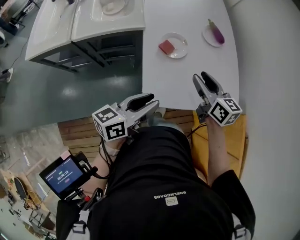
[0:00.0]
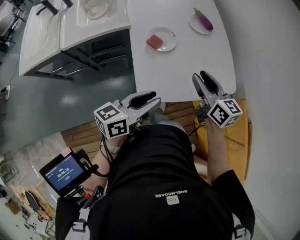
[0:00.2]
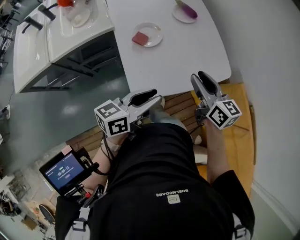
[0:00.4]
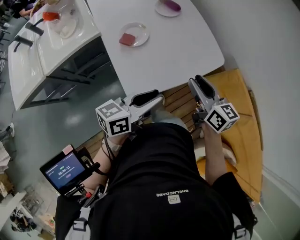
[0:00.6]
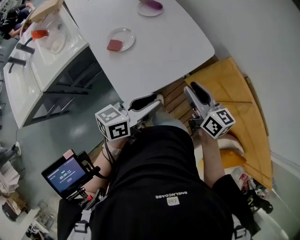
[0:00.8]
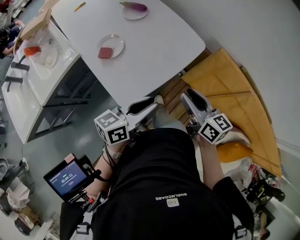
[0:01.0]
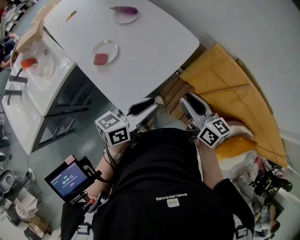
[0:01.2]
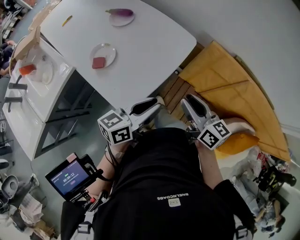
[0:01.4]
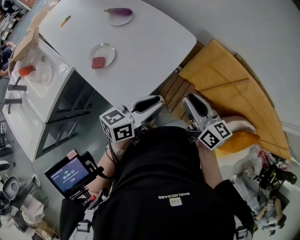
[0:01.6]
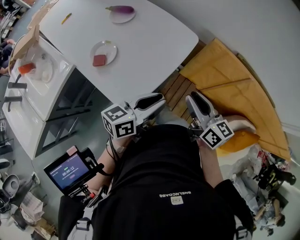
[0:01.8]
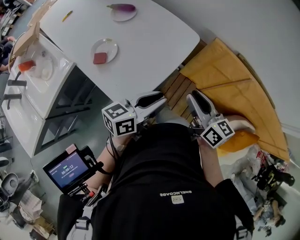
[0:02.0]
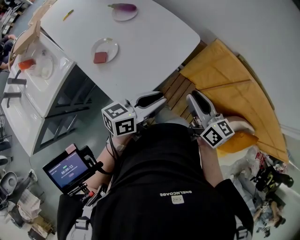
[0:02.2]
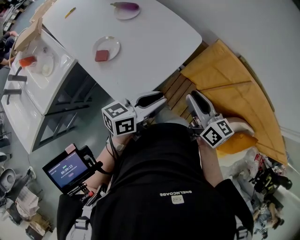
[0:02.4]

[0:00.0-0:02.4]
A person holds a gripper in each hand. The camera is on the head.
0:00.0 to 0:01.2: The left gripper ends up some 20 cm from where it was, and turns by some 40 degrees. The right gripper ends up approximately 30 cm from where it was, and changes its angle by about 40 degrees.
0:01.2 to 0:02.4: The grippers make only small movements.

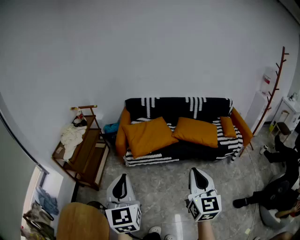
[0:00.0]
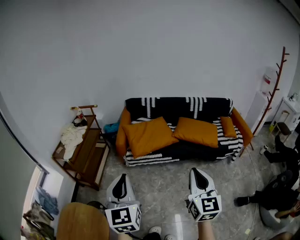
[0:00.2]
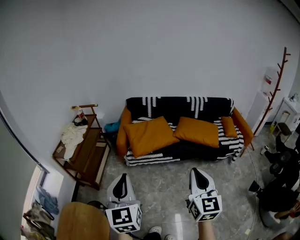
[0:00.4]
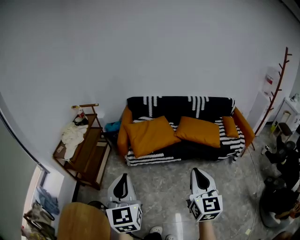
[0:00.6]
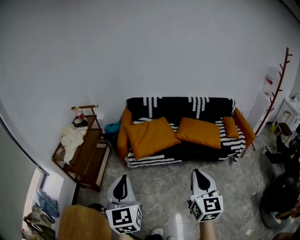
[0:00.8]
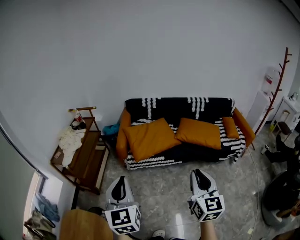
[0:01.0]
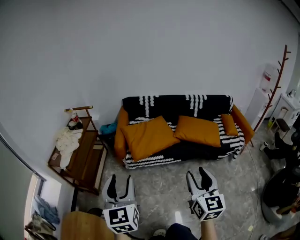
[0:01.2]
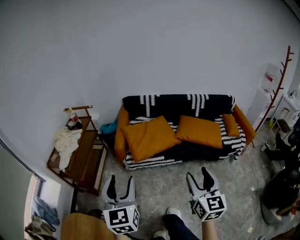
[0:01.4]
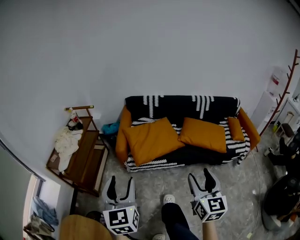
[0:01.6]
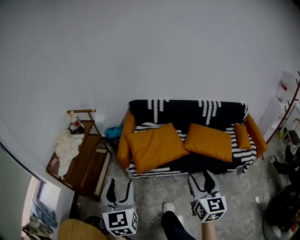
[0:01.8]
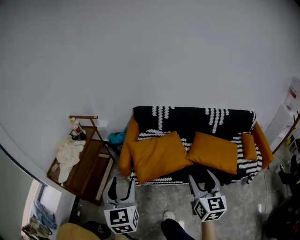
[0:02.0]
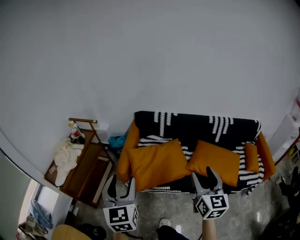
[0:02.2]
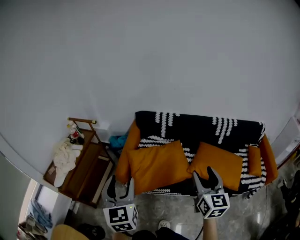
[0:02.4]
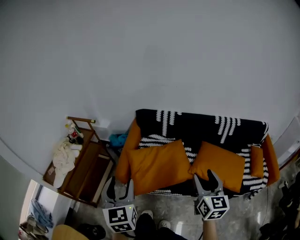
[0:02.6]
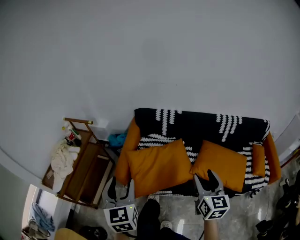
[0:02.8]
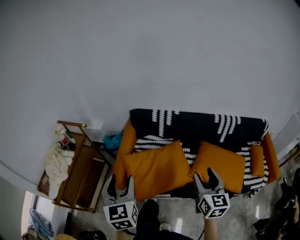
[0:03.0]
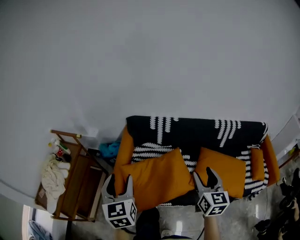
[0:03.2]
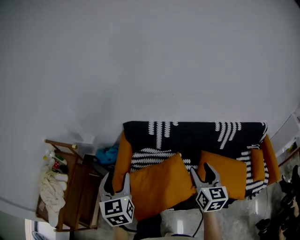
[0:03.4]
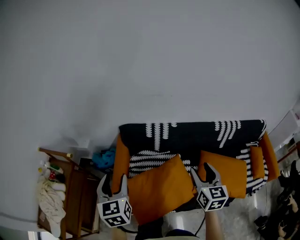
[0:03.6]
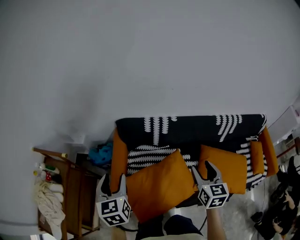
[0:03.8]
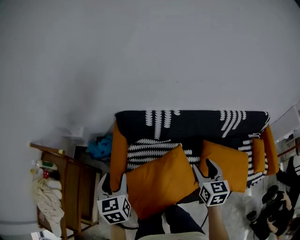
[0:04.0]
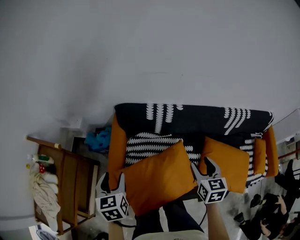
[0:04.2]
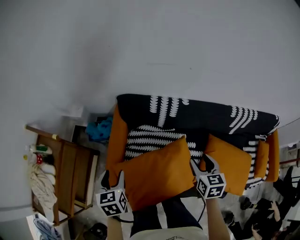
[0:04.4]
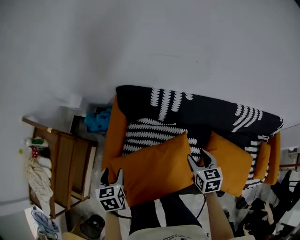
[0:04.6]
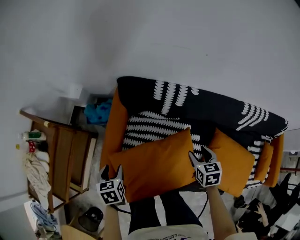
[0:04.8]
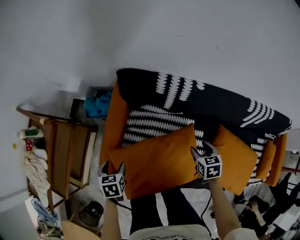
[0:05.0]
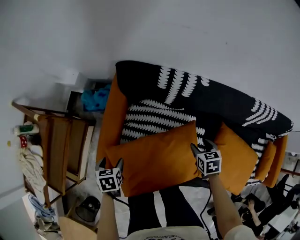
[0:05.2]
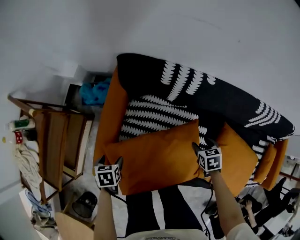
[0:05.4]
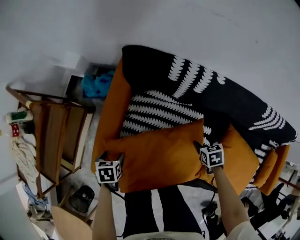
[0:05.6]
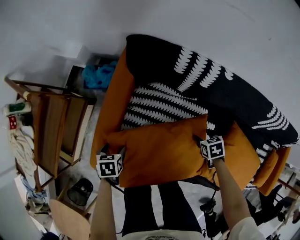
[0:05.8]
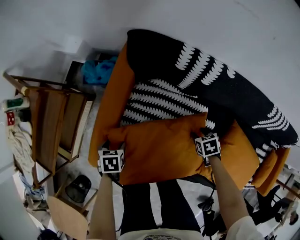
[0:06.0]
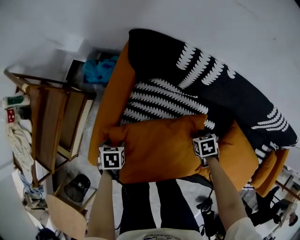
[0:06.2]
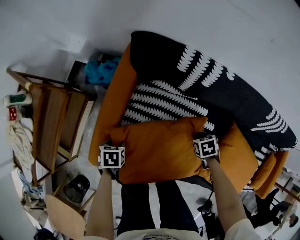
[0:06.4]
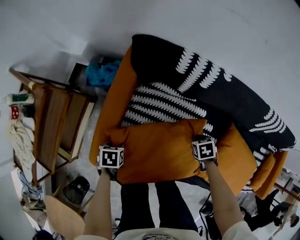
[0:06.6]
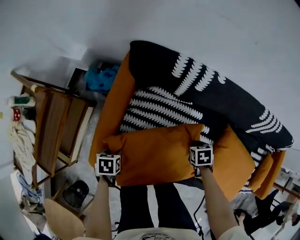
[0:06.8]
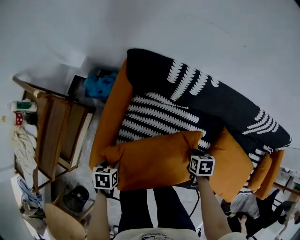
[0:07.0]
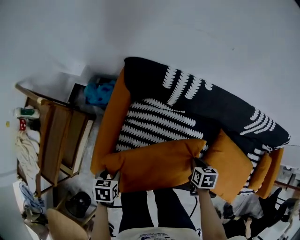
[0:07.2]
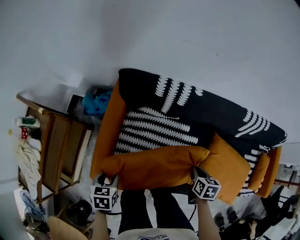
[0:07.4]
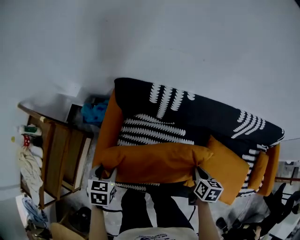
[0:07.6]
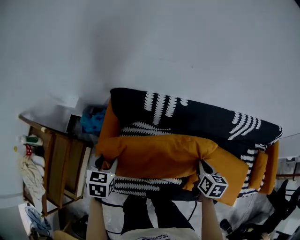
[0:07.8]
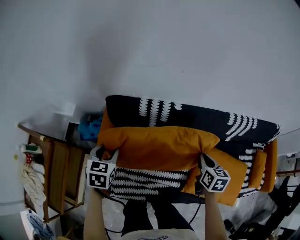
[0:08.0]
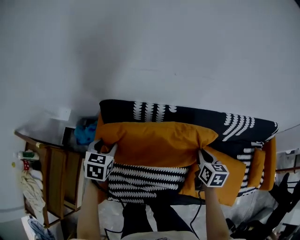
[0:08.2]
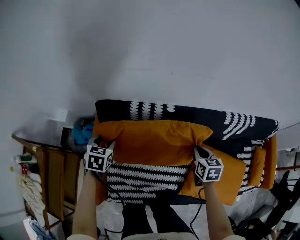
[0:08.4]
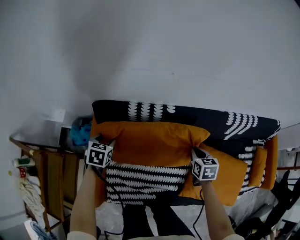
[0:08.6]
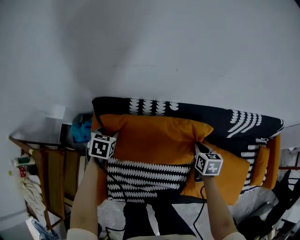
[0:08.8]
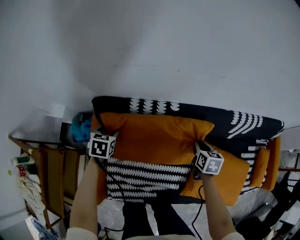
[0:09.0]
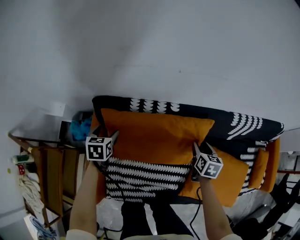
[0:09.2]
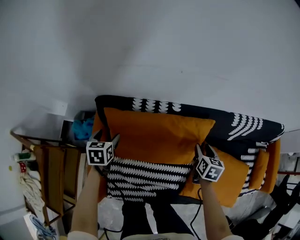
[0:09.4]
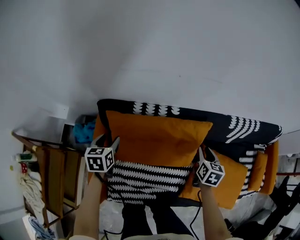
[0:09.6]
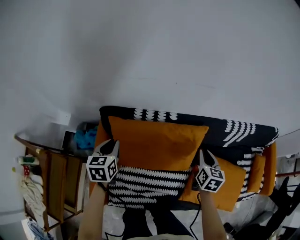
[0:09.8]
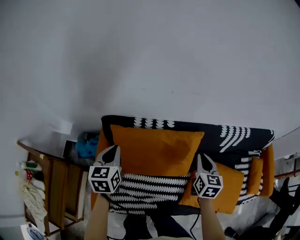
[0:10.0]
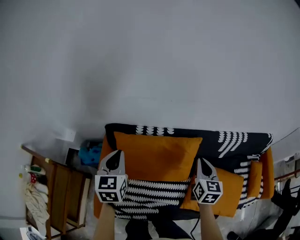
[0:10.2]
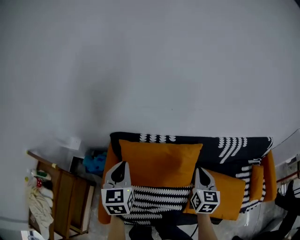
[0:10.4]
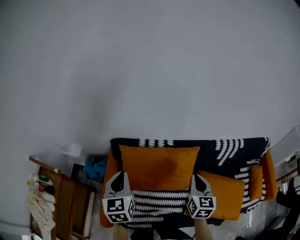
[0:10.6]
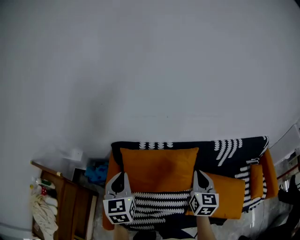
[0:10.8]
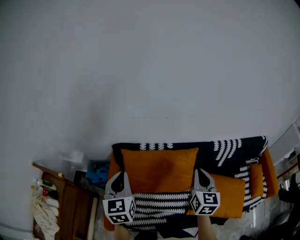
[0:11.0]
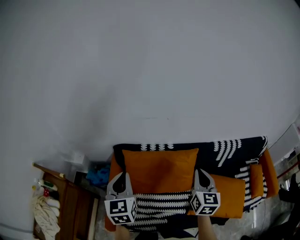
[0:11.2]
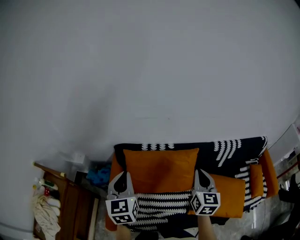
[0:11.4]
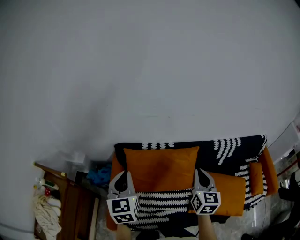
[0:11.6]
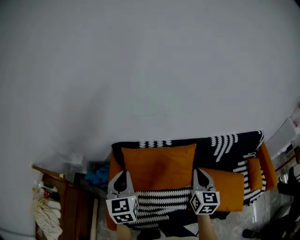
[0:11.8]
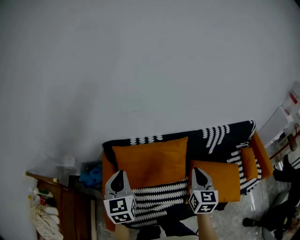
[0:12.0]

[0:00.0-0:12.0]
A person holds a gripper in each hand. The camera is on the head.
0:00.0 to 0:01.6: The left gripper moves forward, approximately 15 cm, and opens up, while the right gripper moves forward and downward, roughly 15 cm, and opens up.
0:01.6 to 0:03.0: The two grippers travel together, forward, some 40 cm.
0:03.0 to 0:04.4: Both grippers move forward and downward, about 35 cm. The right gripper rotates some 30 degrees. The left gripper changes its angle by some 30 degrees.
0:04.4 to 0:06.0: The two grippers go some 30 cm downward. The right gripper points its fingers approximately 40 degrees further downward, while the left gripper tilts its fingers roughly 30 degrees downward.
0:06.0 to 0:07.6: The two grippers go roughly 20 cm upward. The right gripper rotates some 50 degrees, and closes, while the left gripper swivels roughly 30 degrees, and closes up.
0:07.6 to 0:09.0: The two grippers go roughly 25 cm forward.
0:09.0 to 0:10.4: Both grippers travel together upward and backward, roughly 30 cm. The left gripper tilts its fingers some 40 degrees upward, and closes its fingers. Meanwhile the right gripper turns by about 30 degrees, and opens, then closes once more.
0:10.4 to 0:12.0: The left gripper is displaced backward by roughly 5 cm, while the right gripper goes approximately 10 cm backward and upward.

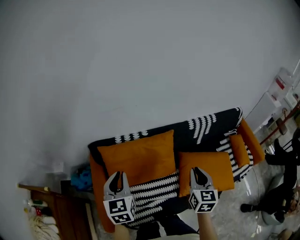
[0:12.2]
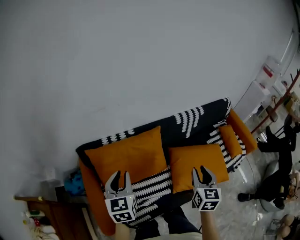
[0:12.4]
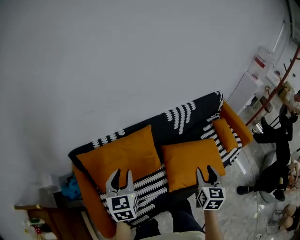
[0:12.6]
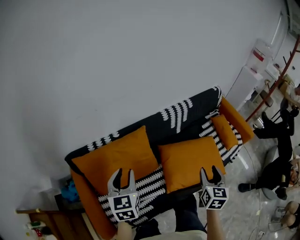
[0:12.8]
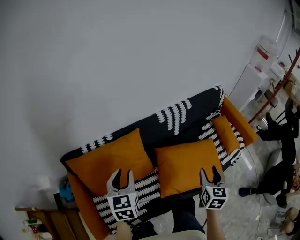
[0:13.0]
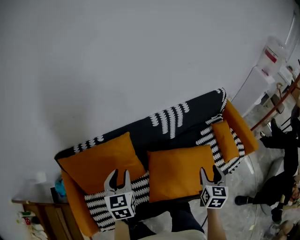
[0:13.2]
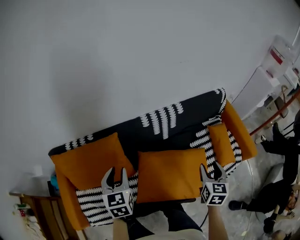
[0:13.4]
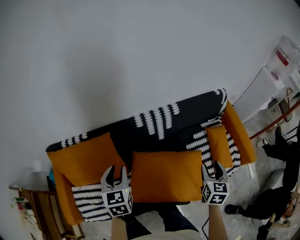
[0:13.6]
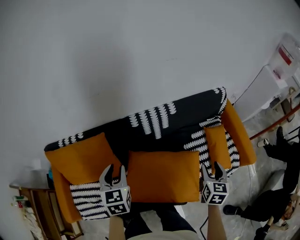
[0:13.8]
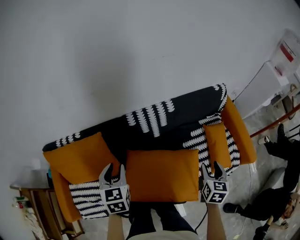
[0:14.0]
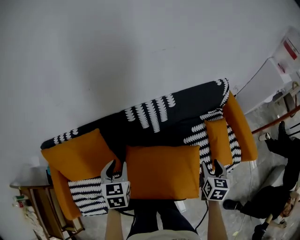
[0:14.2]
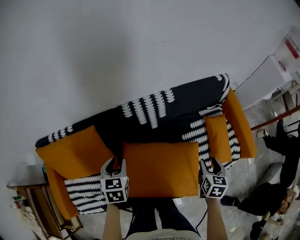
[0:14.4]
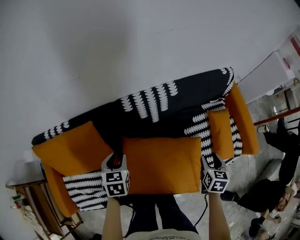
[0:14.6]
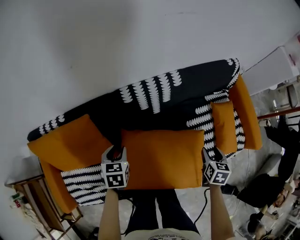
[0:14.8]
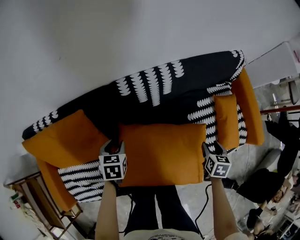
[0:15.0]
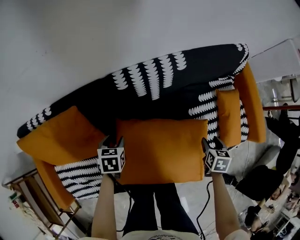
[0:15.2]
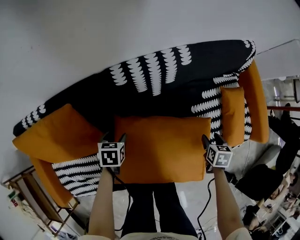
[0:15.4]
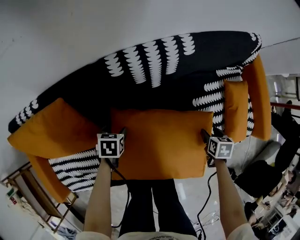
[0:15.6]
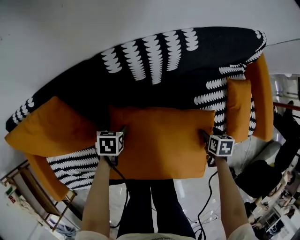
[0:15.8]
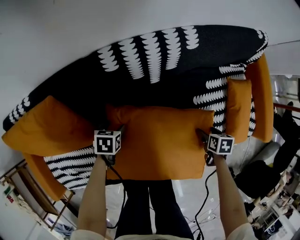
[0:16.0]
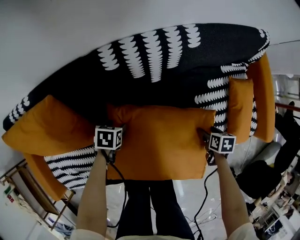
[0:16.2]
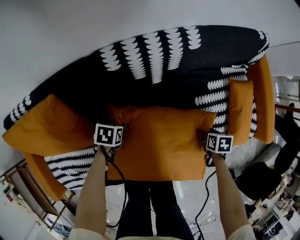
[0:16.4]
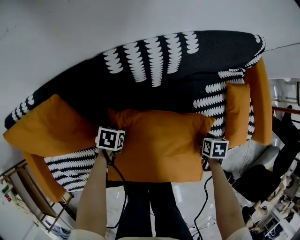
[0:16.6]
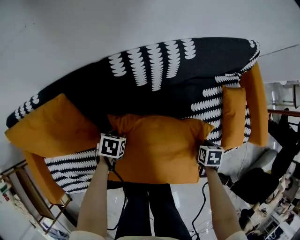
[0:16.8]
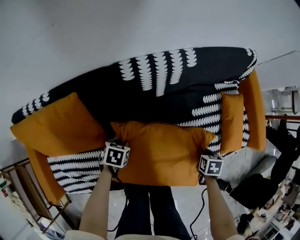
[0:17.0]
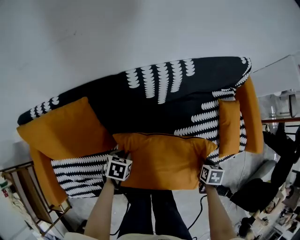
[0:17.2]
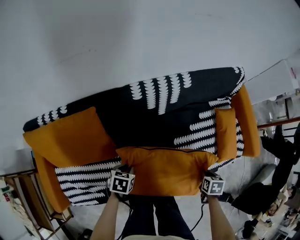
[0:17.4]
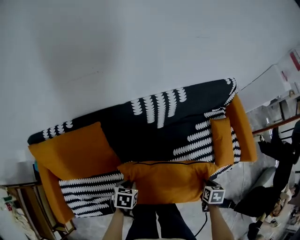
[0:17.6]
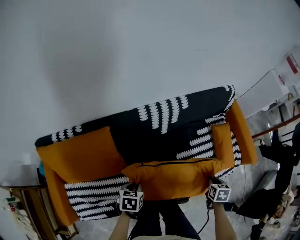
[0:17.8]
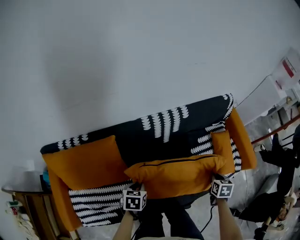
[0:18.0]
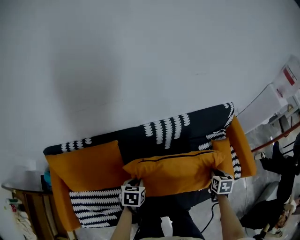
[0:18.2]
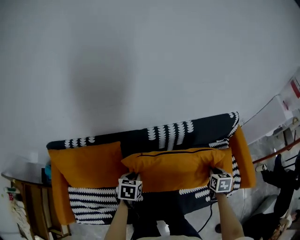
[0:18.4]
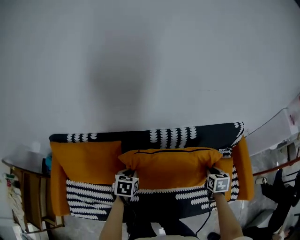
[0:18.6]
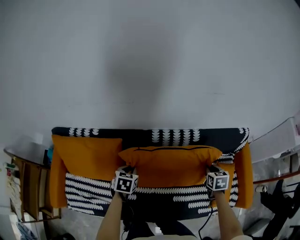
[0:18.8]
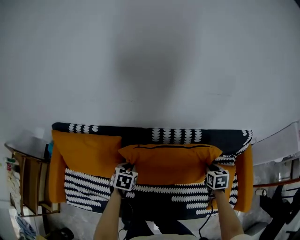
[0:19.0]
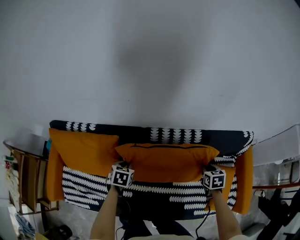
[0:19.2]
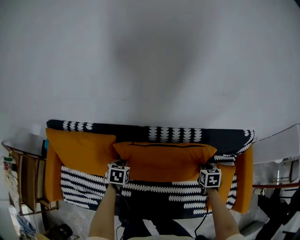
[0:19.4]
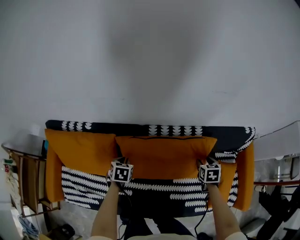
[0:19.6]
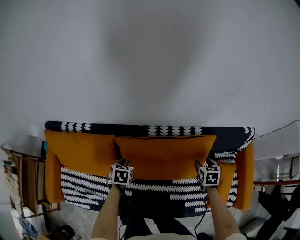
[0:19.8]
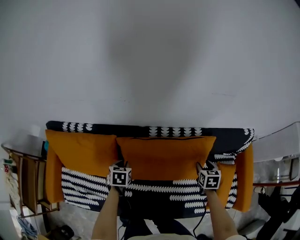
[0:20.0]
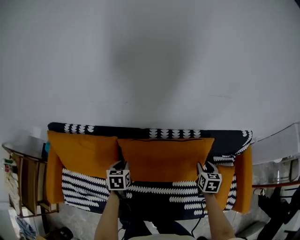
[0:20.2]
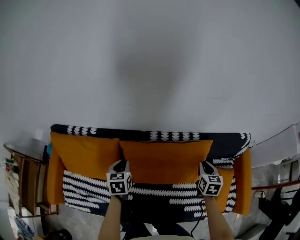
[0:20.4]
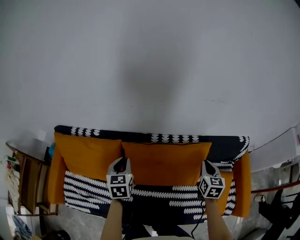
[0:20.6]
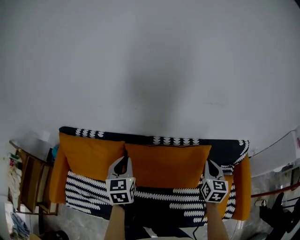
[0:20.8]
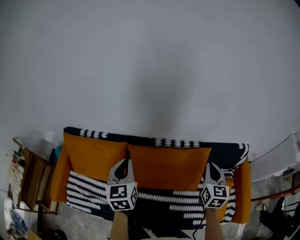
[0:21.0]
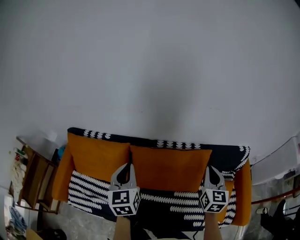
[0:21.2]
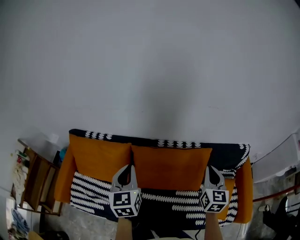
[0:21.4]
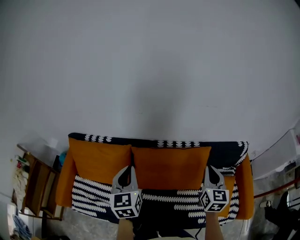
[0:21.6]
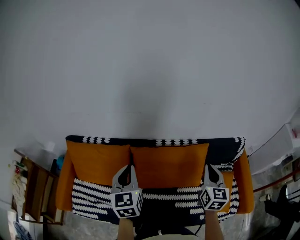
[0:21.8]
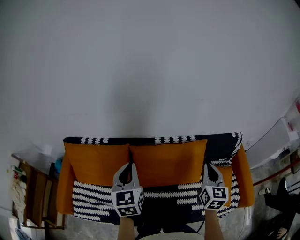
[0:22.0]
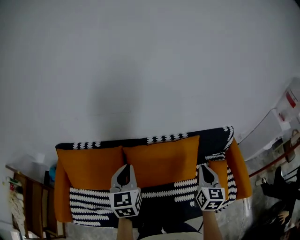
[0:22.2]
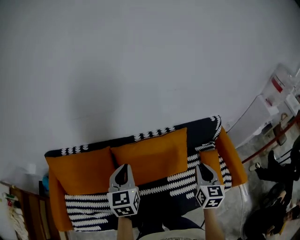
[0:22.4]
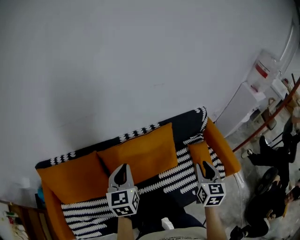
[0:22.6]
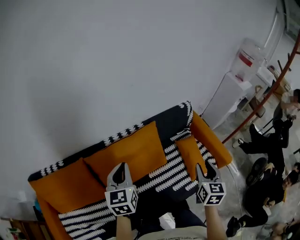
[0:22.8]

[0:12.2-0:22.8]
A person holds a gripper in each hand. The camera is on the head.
0:12.2 to 0:13.8: The pair of grippers is taken to the right and forward, roughly 50 cm. The right gripper opens.
0:13.8 to 0:15.2: The grippers both shift downward by approximately 30 cm. The left gripper points its fingers approximately 30 degrees further downward, while the right gripper changes its angle by roughly 30 degrees.
0:15.2 to 0:16.8: The grippers both shift downward by some 10 cm. The right gripper closes up. The left gripper changes its angle by about 20 degrees.
0:16.8 to 0:18.2: Both grippers travel together upward, approximately 25 cm. The left gripper rotates some 30 degrees; the right gripper rotates roughly 30 degrees.
0:18.2 to 0:19.8: The right gripper shifts by approximately 20 cm, rotates approximately 20 degrees, and opens its fingers. The left gripper changes place by about 15 cm.
0:19.8 to 0:21.2: The grippers both shift upward by approximately 30 cm. The left gripper tips its fingers upward by some 50 degrees, while the right gripper angles its fingers upward, by approximately 40 degrees, and closes.
0:21.2 to 0:22.8: The right gripper shifts by roughly 25 cm, changes its angle by approximately 40 degrees, and opens up. Meanwhile the left gripper ends up approximately 15 cm from where it was, and changes its angle by roughly 30 degrees.
